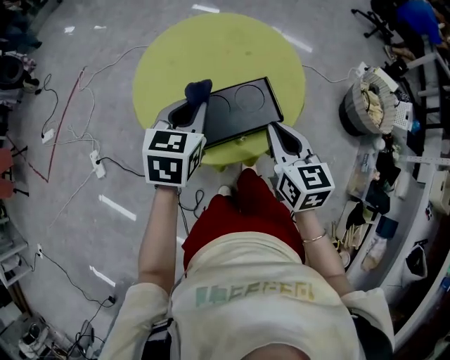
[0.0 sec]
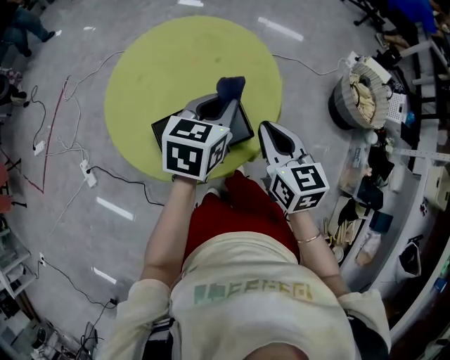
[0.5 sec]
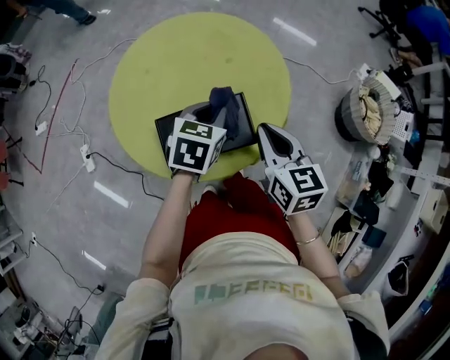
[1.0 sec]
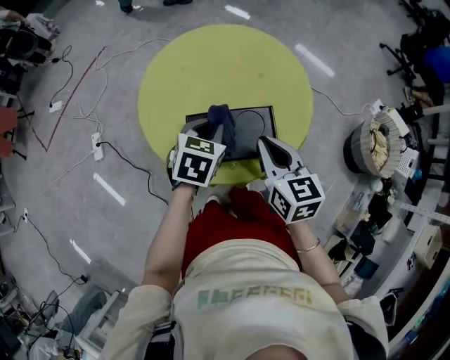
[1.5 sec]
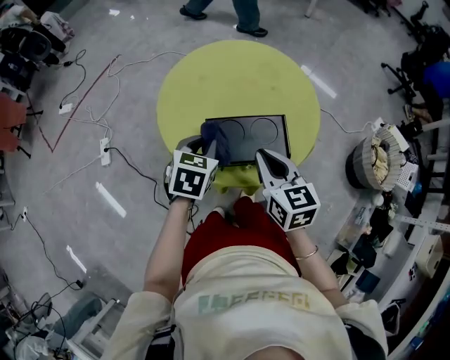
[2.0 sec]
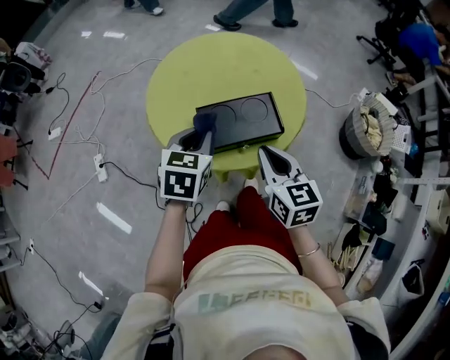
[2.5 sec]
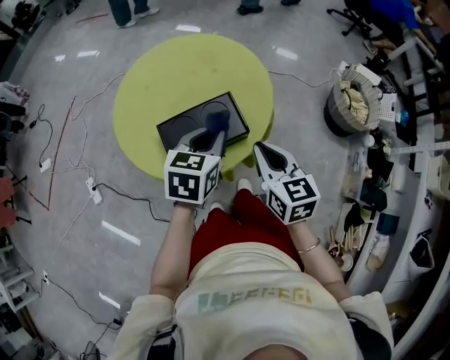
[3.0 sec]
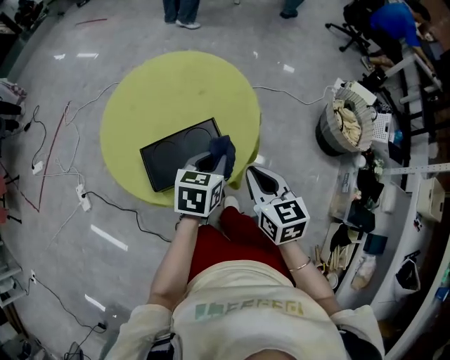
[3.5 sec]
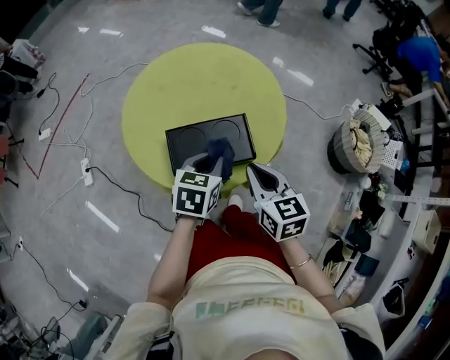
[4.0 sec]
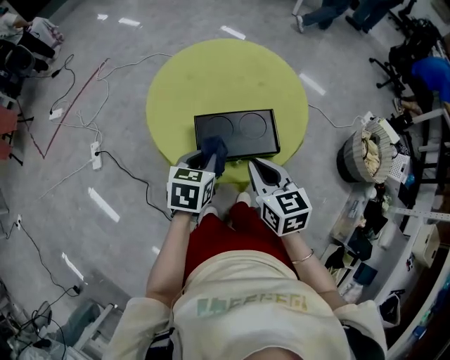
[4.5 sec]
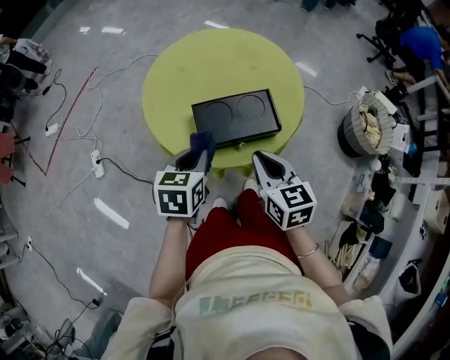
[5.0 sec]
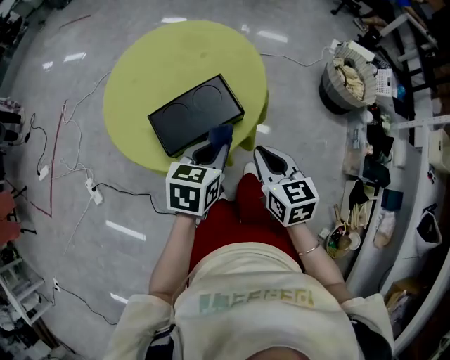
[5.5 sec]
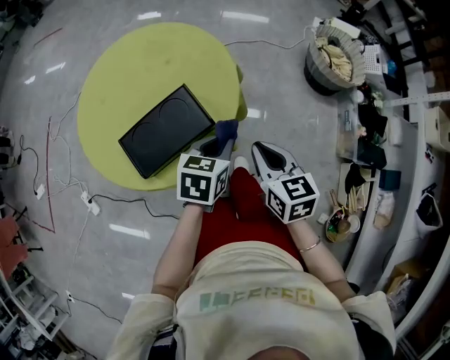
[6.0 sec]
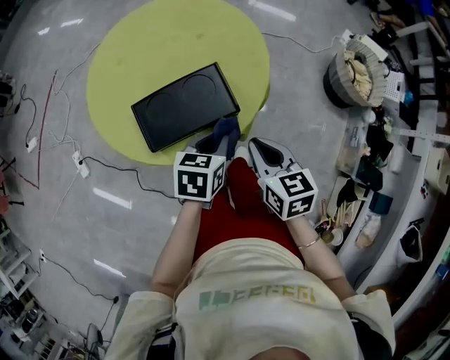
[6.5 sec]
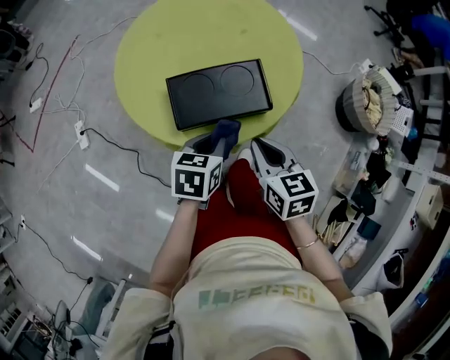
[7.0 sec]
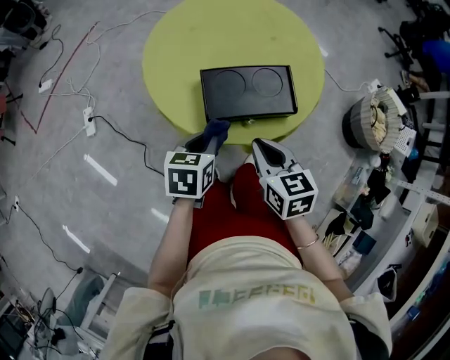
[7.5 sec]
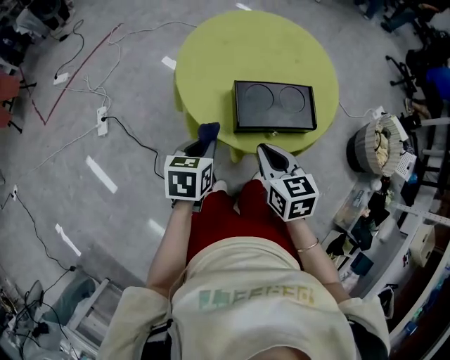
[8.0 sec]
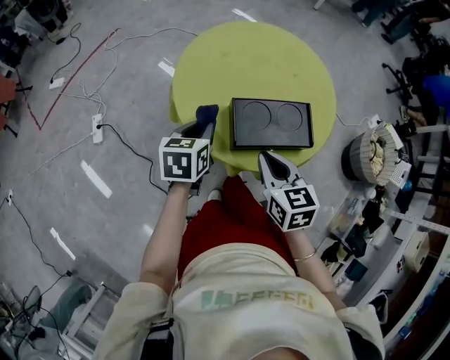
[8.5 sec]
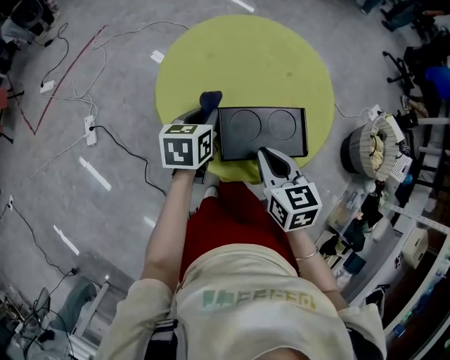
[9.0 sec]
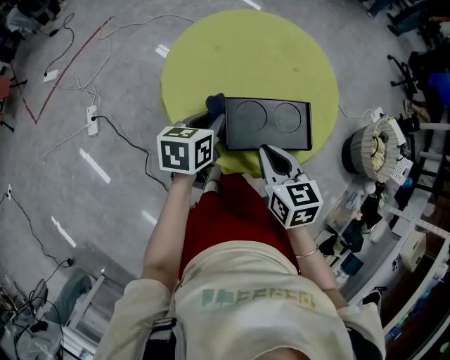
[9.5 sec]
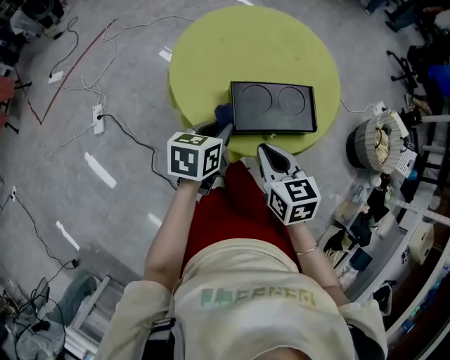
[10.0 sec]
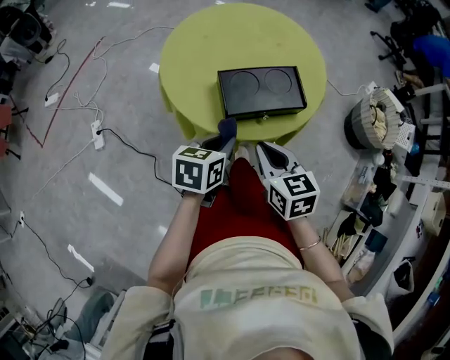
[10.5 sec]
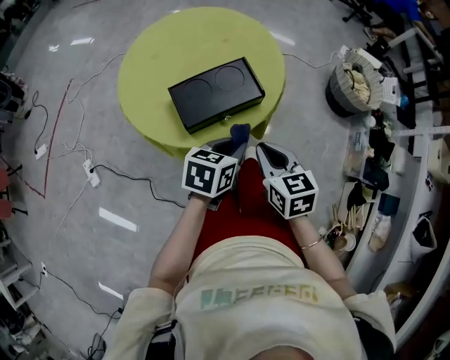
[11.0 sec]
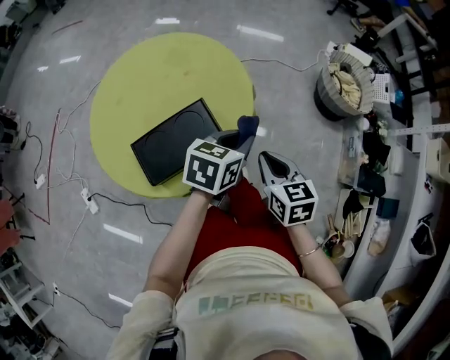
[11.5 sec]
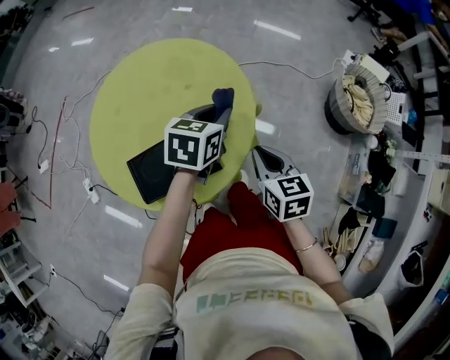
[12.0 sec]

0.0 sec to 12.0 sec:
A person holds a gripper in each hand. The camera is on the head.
0.0 sec to 2.0 sec: The right gripper moves to the left, approximately 5 cm. Meanwhile the left gripper travels downward by approximately 5 cm, and goes to the right and returns, roughly 20 cm each way.
2.0 sec to 4.0 sec: The grippers both shift to the right by roughly 10 cm.
4.0 sec to 6.0 sec: The left gripper shifts by about 15 cm, and changes its angle by roughly 20 degrees, while the right gripper ends up some 15 cm from where it was, and swivels some 20 degrees.
6.0 sec to 8.0 sec: The right gripper changes place by approximately 30 cm, and turns by approximately 30 degrees. Meanwhile the left gripper changes place by some 35 cm, and swivels some 40 degrees.
8.0 sec to 10.0 sec: The left gripper goes forward and returns, approximately 20 cm each way. Meanwhile the right gripper moves some 10 cm forward and comes back.
10.0 sec to 12.0 sec: The right gripper moves approximately 35 cm, and swivels roughly 20 degrees, while the left gripper changes place by about 40 cm, and swivels approximately 30 degrees.

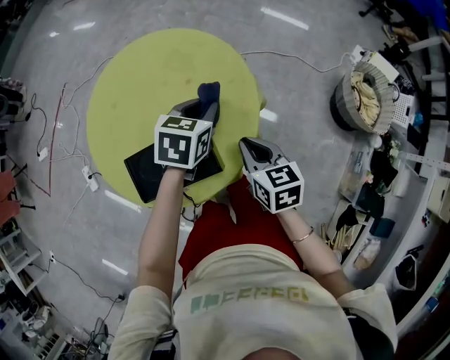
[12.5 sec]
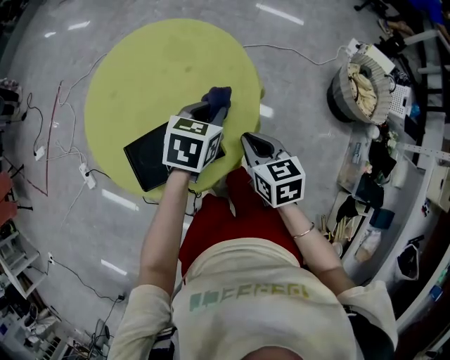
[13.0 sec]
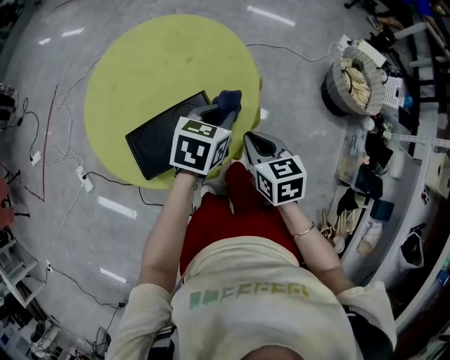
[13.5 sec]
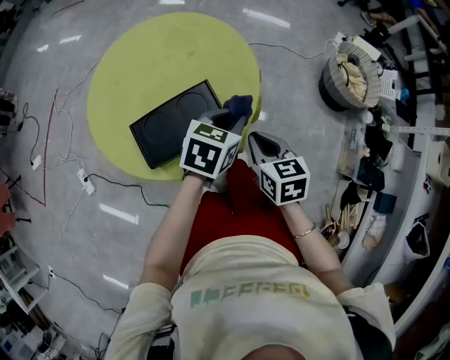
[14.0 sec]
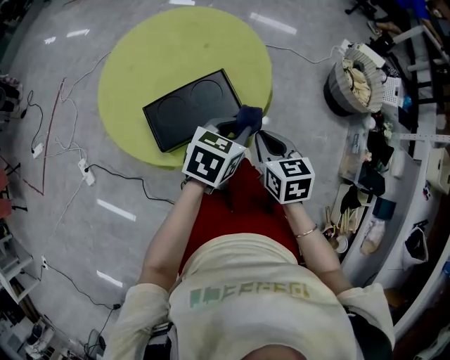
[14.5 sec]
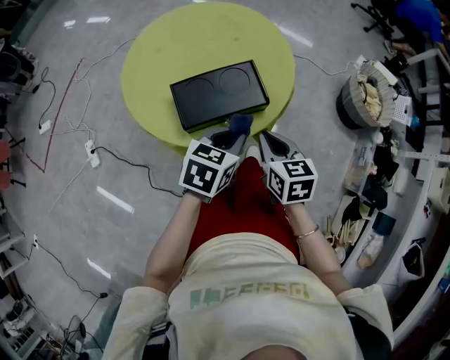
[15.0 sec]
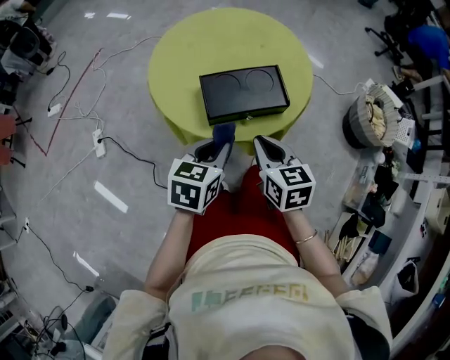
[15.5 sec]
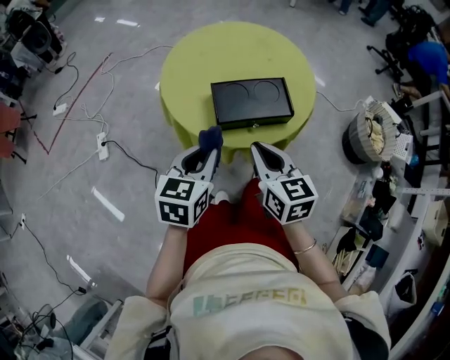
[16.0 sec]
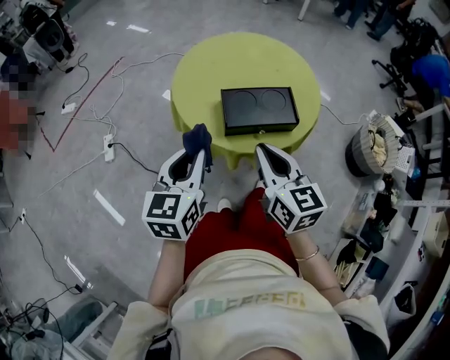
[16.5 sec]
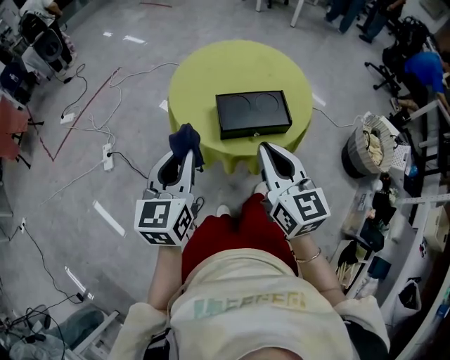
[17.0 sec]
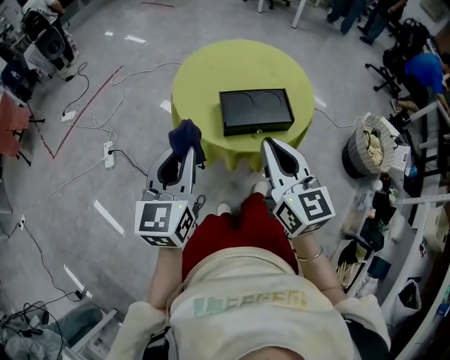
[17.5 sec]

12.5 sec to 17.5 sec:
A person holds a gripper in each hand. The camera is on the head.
12.5 sec to 15.0 sec: Both grippers travel together backward, roughly 25 cm.
15.0 sec to 17.5 sec: The left gripper changes place by approximately 30 cm, and angles its fingers upward, by about 30 degrees; the right gripper heads upward, covering roughly 20 cm, and tilts its fingers roughly 30 degrees upward.

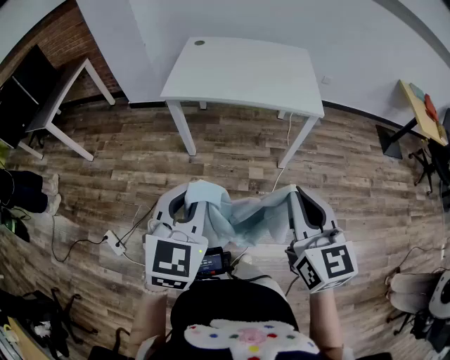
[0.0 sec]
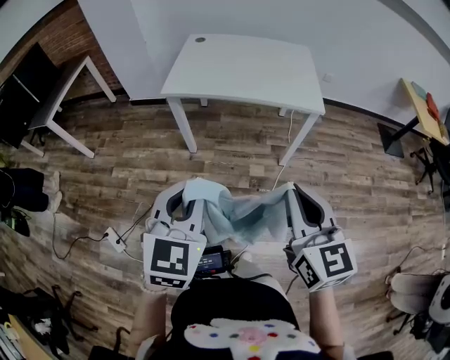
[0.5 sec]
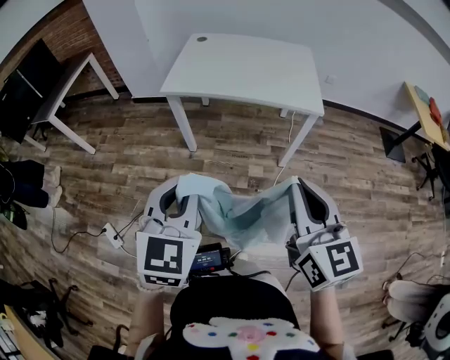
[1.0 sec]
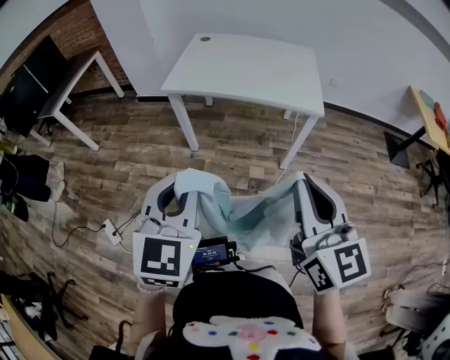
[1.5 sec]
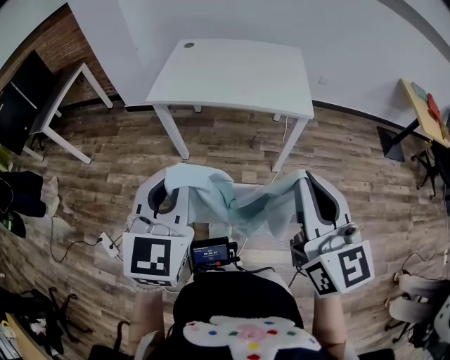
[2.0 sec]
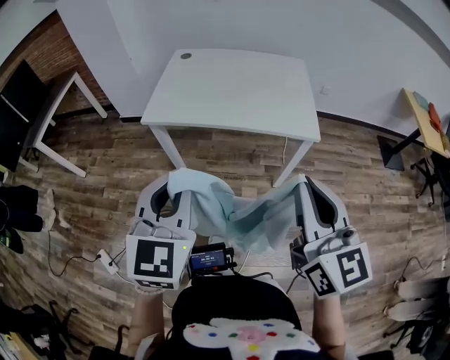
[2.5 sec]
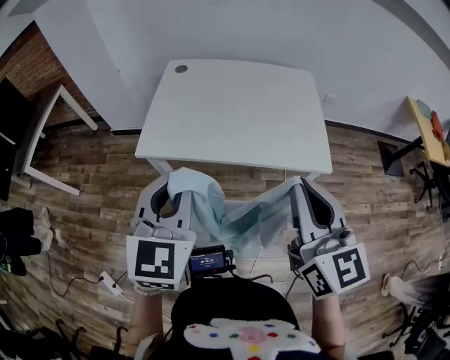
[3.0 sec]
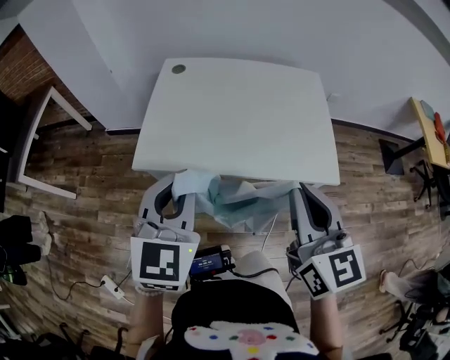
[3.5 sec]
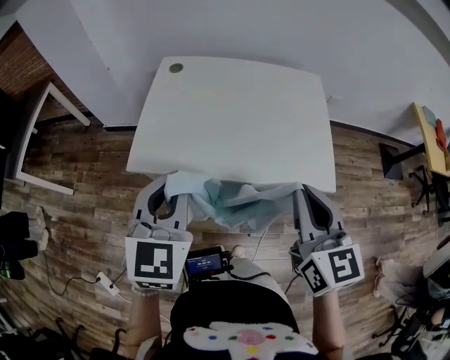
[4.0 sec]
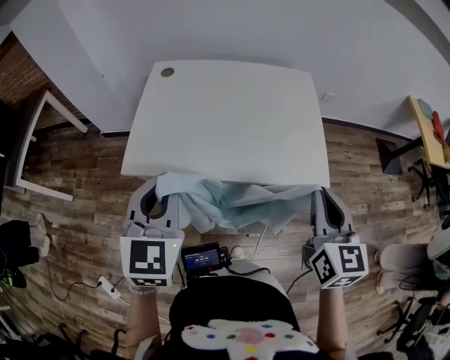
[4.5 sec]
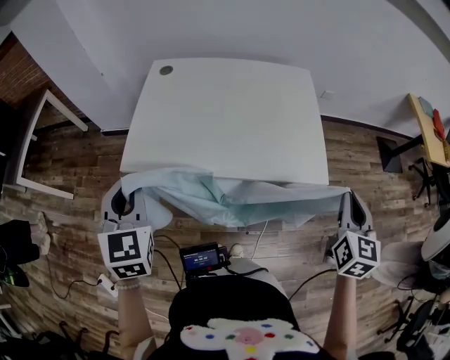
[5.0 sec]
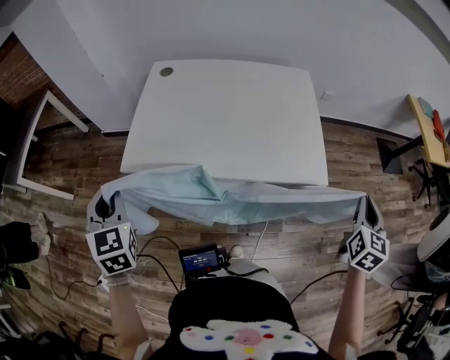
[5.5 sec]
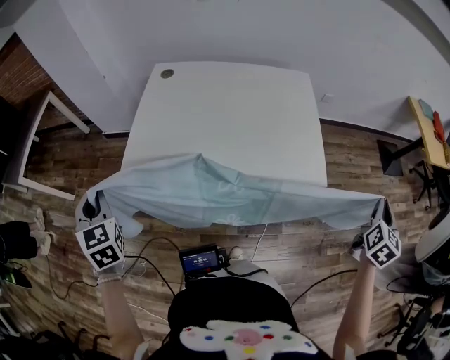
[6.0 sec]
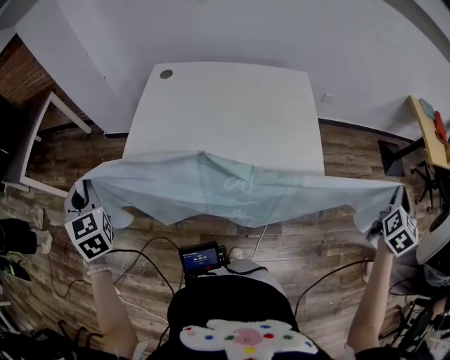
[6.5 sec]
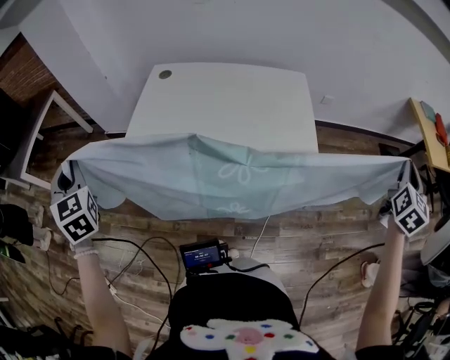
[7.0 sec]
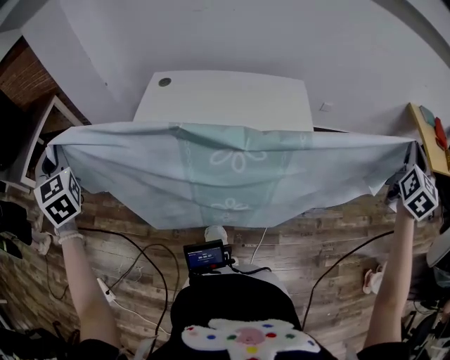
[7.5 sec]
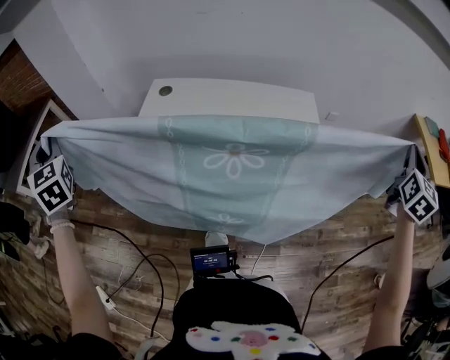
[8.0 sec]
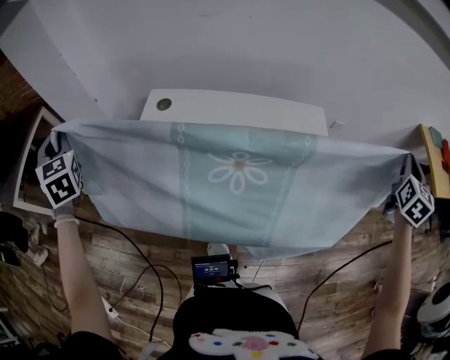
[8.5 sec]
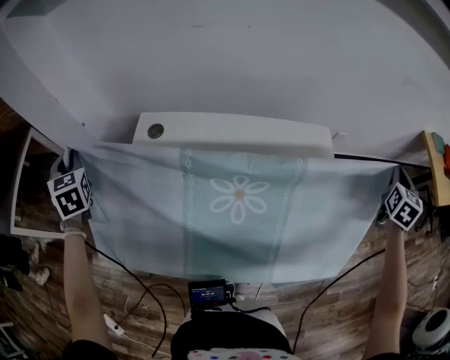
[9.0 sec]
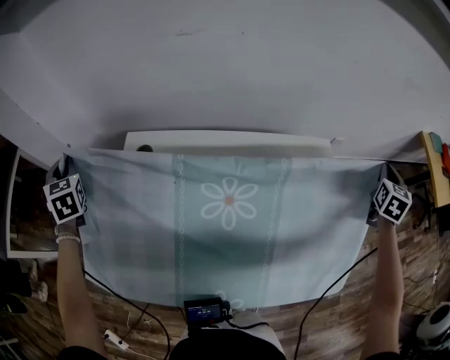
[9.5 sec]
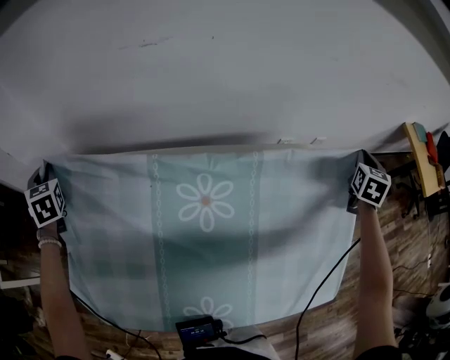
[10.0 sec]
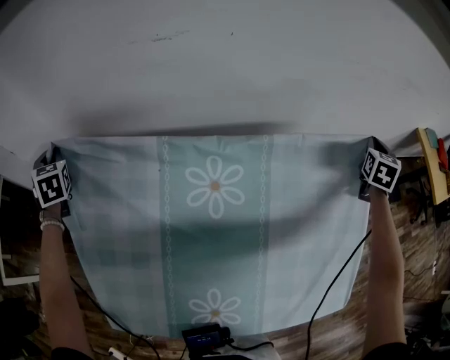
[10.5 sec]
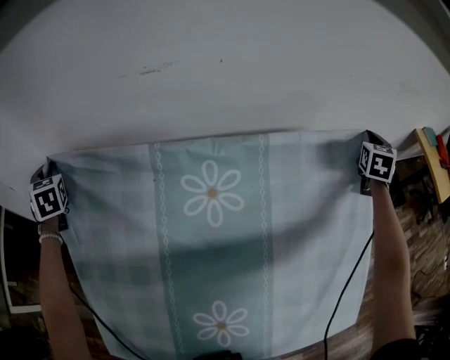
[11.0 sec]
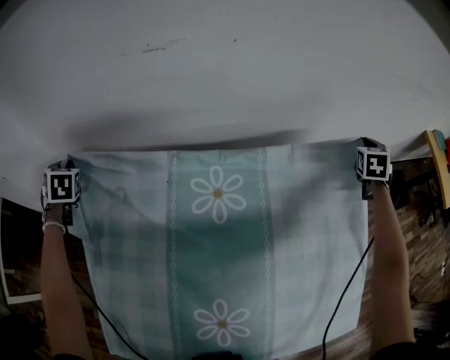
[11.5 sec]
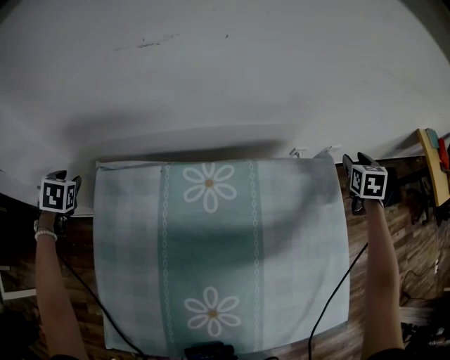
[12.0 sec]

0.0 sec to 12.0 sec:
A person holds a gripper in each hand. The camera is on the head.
0.0 sec to 2.0 sec: The left gripper shifts by approximately 5 cm; the right gripper goes approximately 10 cm to the right and upward.
2.0 sec to 4.0 sec: The two grippers go some 35 cm forward.
4.0 sec to 6.0 sec: The left gripper travels to the left by roughly 20 cm, and rotates approximately 40 degrees, while the right gripper shifts roughly 35 cm to the right, and changes its angle by roughly 50 degrees.
6.0 sec to 8.0 sec: The right gripper heads forward and upward, covering approximately 25 cm. The left gripper goes some 25 cm forward, upward and to the left.
8.0 sec to 10.0 sec: The grippers both shift forward and downward by approximately 25 cm. The right gripper changes its angle by roughly 20 degrees.
10.0 sec to 12.0 sec: The left gripper is displaced backward and downward by about 10 cm, changes its angle by roughly 30 degrees, and opens up. The right gripper heads downward, covering roughly 5 cm, and opens.
